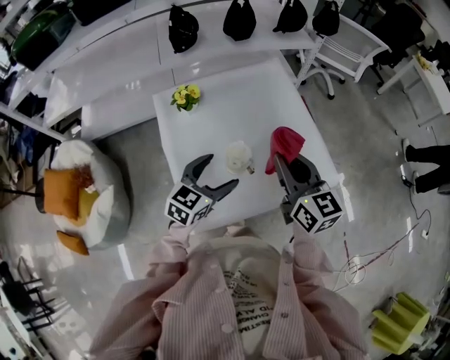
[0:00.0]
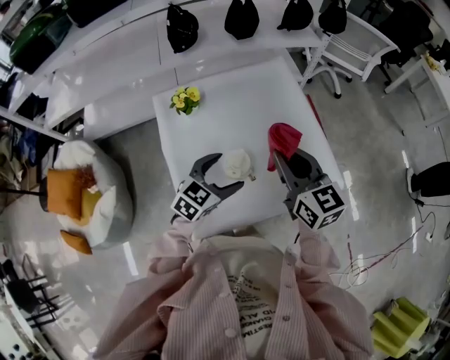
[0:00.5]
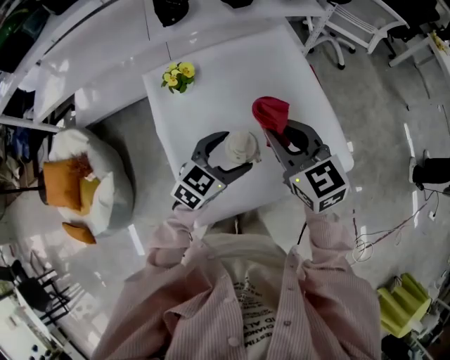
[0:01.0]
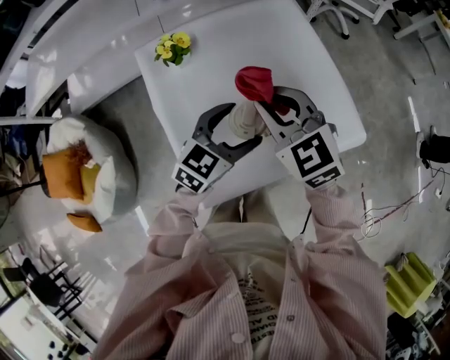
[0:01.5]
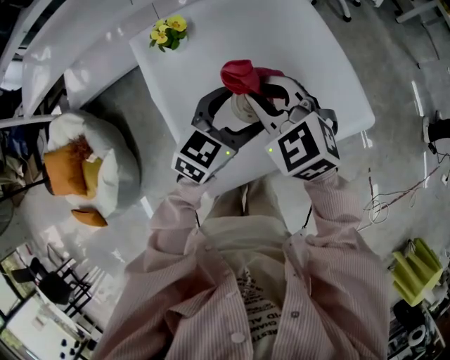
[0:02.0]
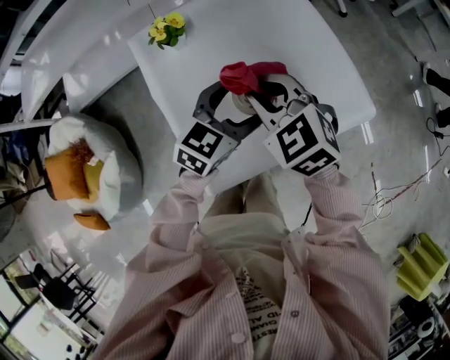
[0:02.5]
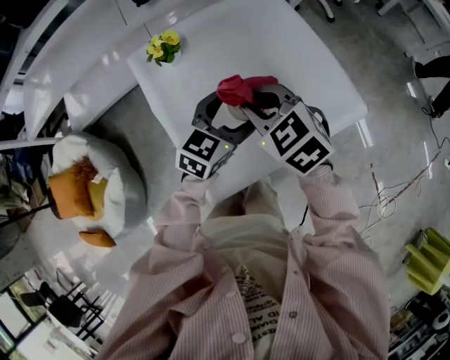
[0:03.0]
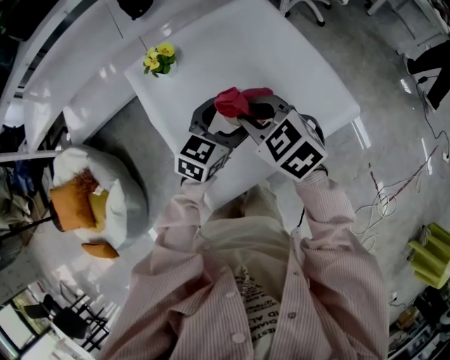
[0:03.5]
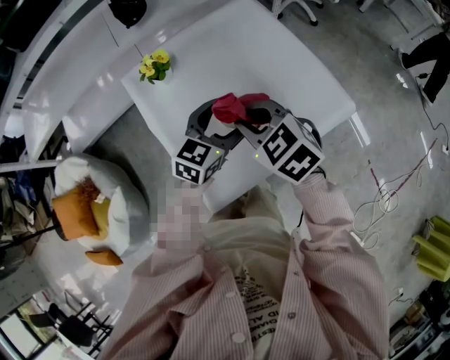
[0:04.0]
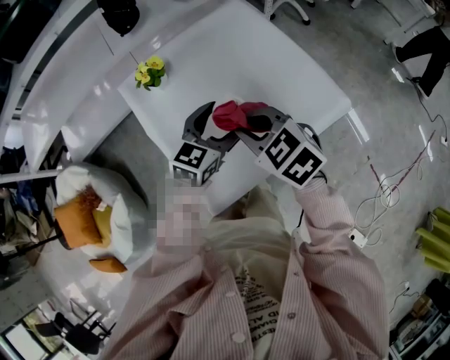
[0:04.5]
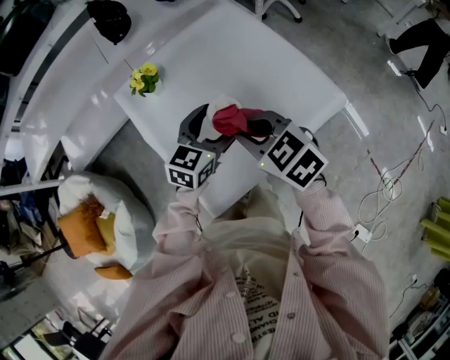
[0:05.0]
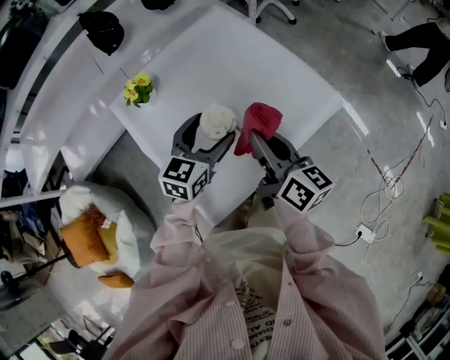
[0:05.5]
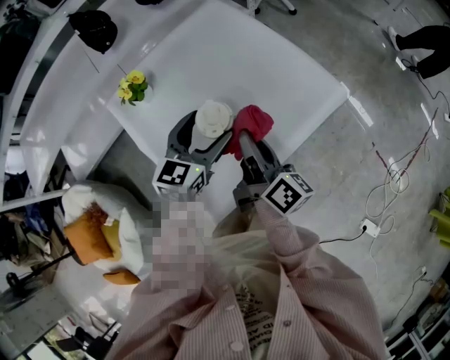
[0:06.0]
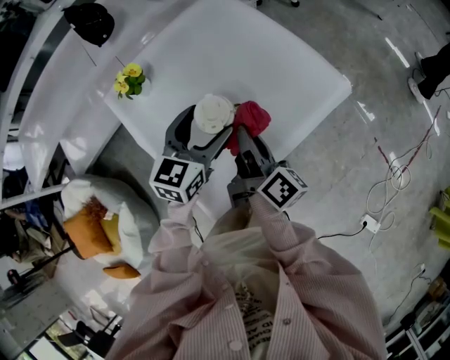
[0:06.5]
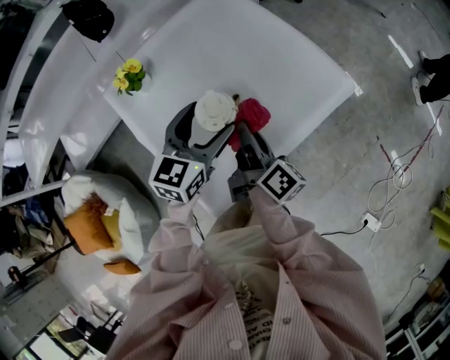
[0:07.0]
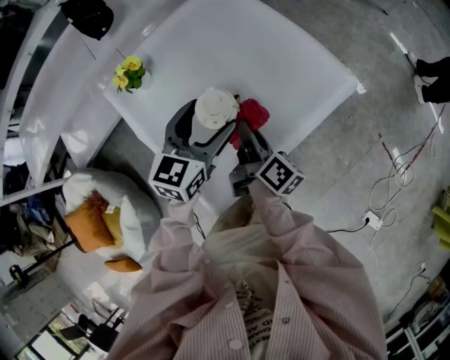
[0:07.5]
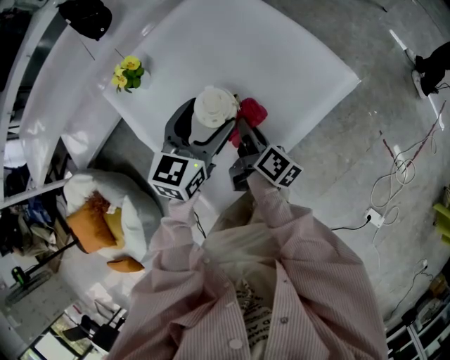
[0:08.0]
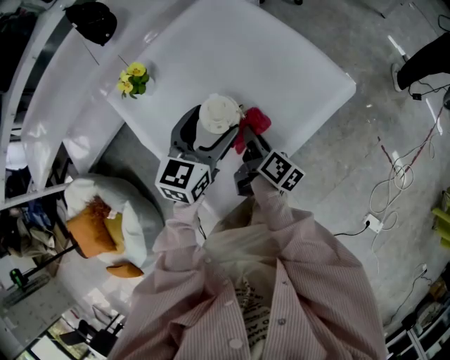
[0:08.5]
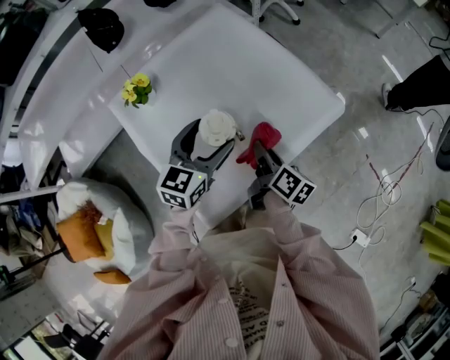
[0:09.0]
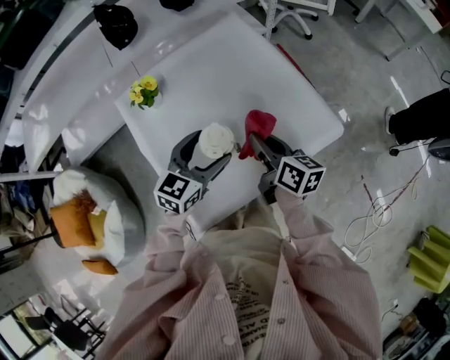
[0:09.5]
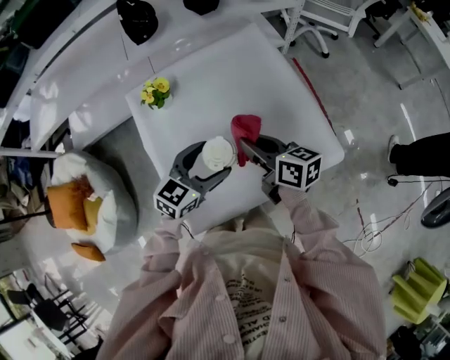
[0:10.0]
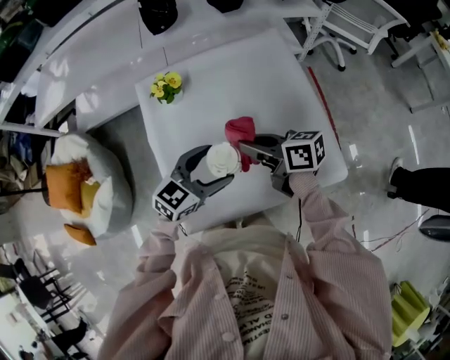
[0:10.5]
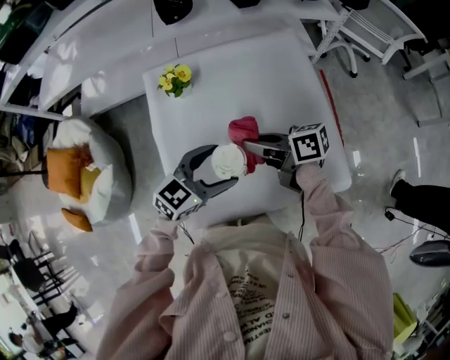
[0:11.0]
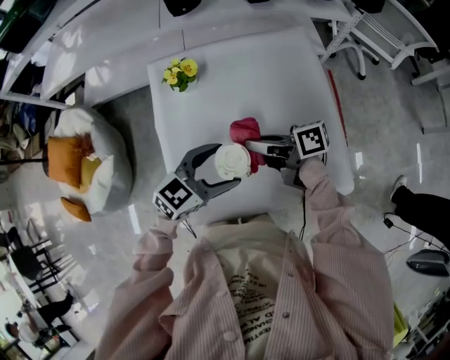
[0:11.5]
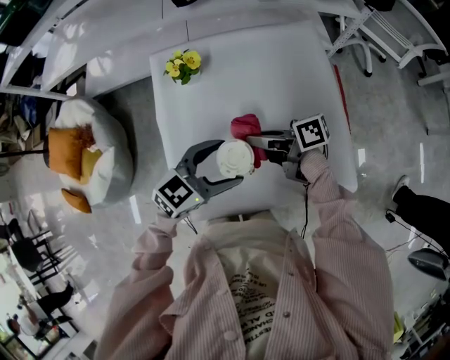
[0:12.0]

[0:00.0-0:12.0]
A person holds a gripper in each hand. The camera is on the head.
0:00.0 to 0:02.0: The left gripper changes place by about 5 cm; the right gripper goes roughly 15 cm to the left and downward, and rotates about 50 degrees.
0:02.0 to 0:04.0: The right gripper ends up about 5 cm from where it was.
0:04.0 to 0:06.0: The right gripper moves to the right, approximately 10 cm, and tilts its fingers some 40 degrees upward.
0:06.0 to 0:08.0: The right gripper heads downward, covering some 10 cm.
0:08.0 to 0:10.0: The right gripper is displaced upward and forward by approximately 15 cm, and rotates roughly 60 degrees.
0:10.0 to 0:12.0: The right gripper changes place by approximately 10 cm, and turns by approximately 50 degrees.

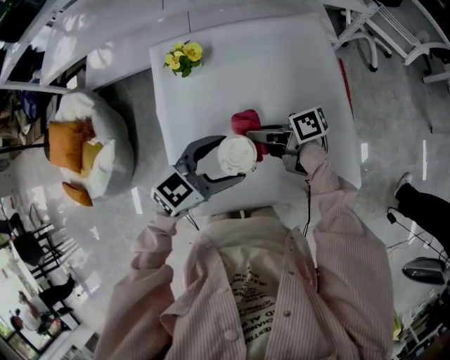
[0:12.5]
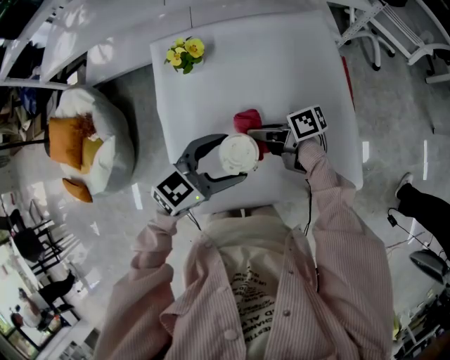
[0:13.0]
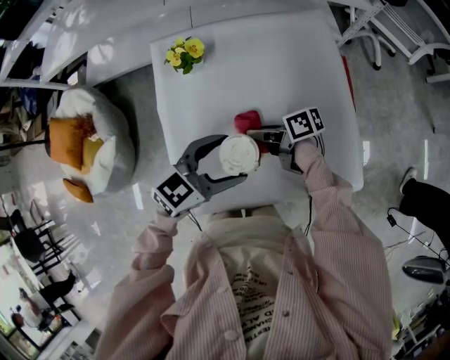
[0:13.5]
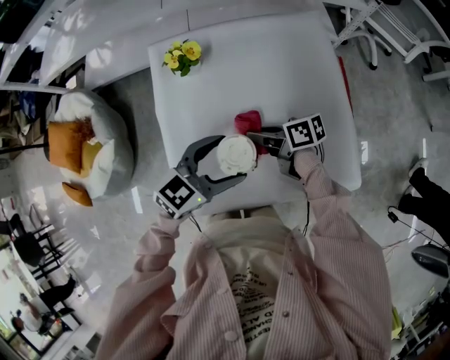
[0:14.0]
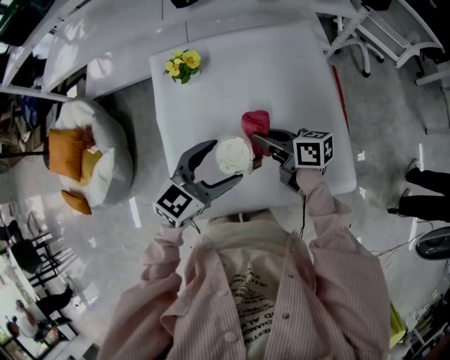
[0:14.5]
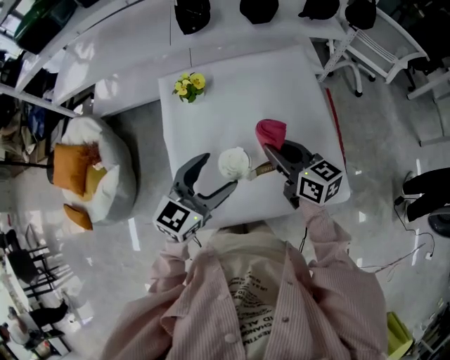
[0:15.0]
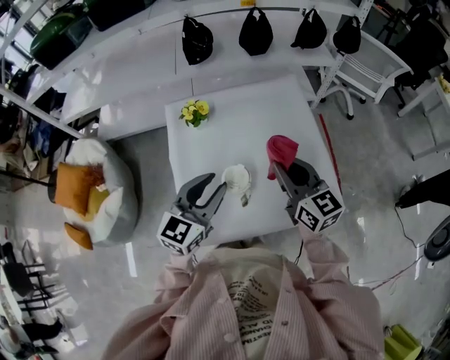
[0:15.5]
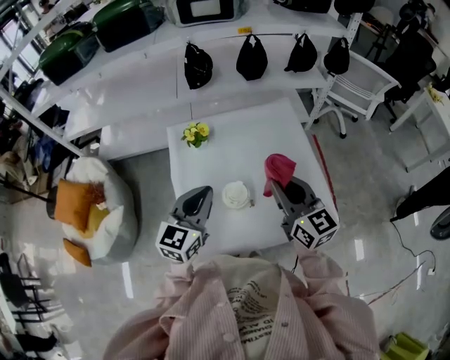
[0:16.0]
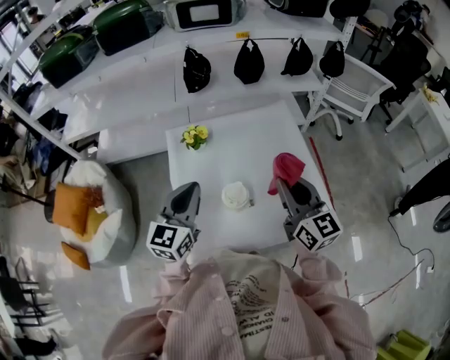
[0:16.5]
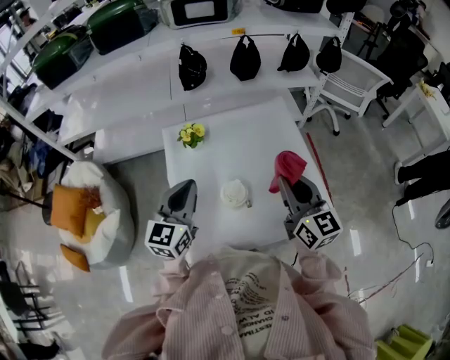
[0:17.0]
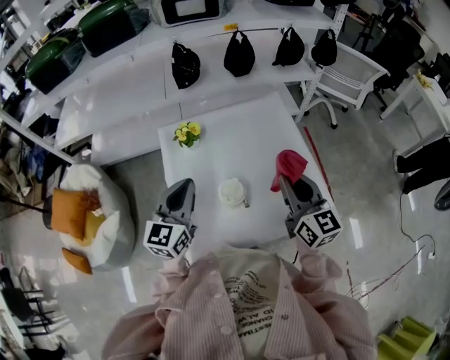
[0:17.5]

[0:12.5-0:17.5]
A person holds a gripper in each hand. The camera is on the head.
0:12.5 to 0:15.0: The right gripper goes some 10 cm upward, and changes its angle by about 50 degrees; the left gripper shifts some 5 cm upward, and rotates roughly 20 degrees.
0:15.0 to 0:17.5: The right gripper travels upward, to the right and backward by about 15 cm, and swivels some 30 degrees; the left gripper goes roughly 10 cm to the left and upward, and closes up.

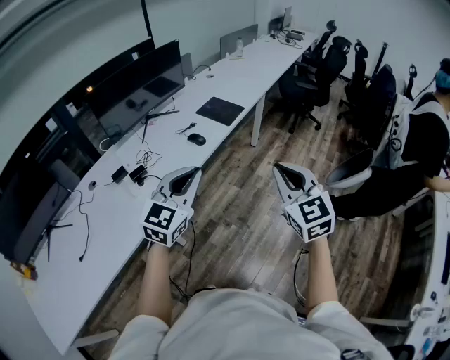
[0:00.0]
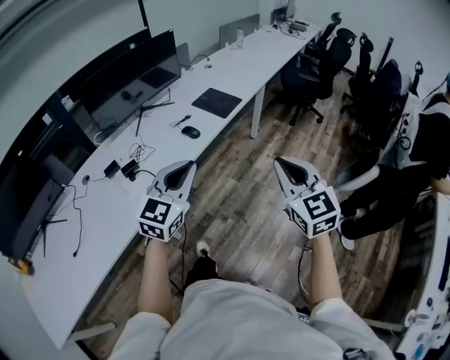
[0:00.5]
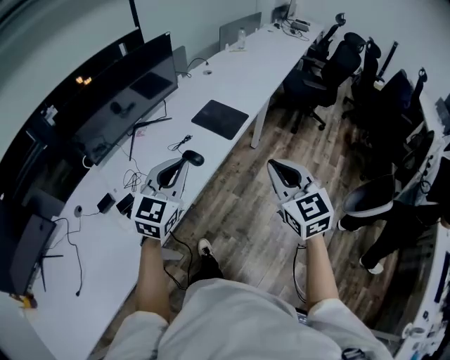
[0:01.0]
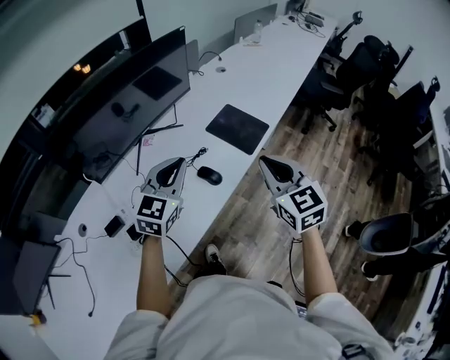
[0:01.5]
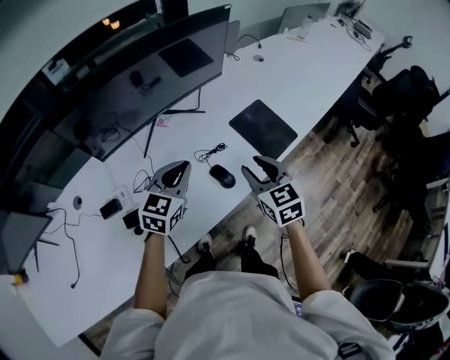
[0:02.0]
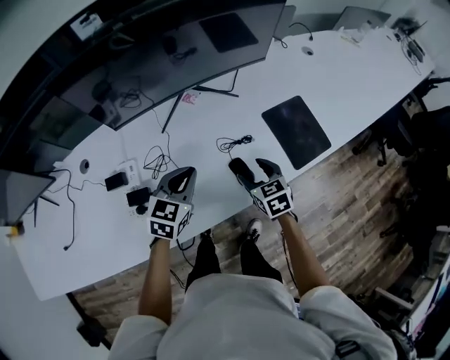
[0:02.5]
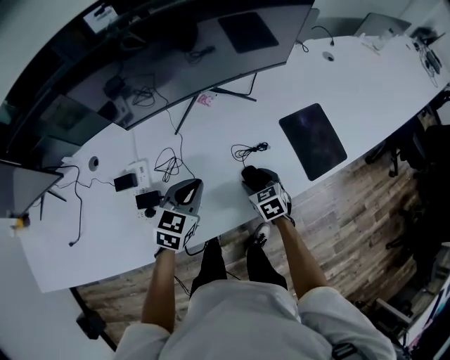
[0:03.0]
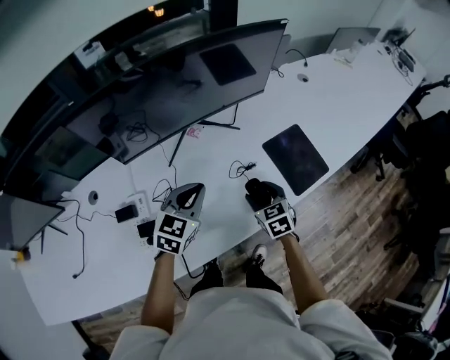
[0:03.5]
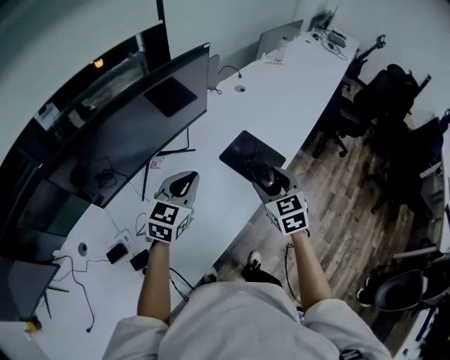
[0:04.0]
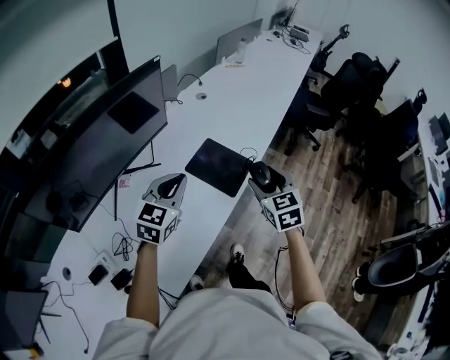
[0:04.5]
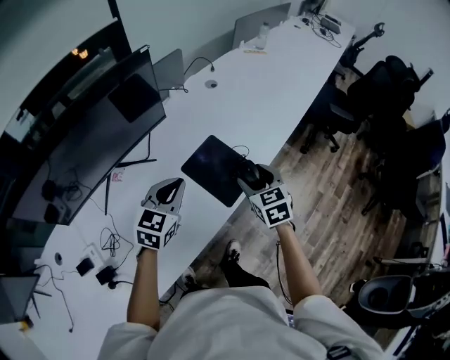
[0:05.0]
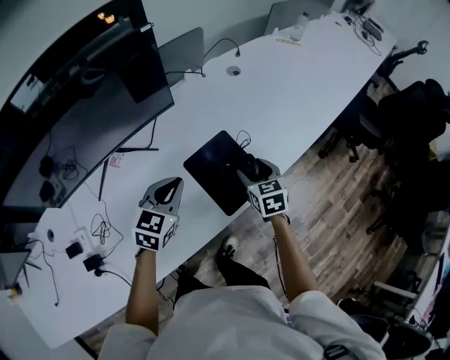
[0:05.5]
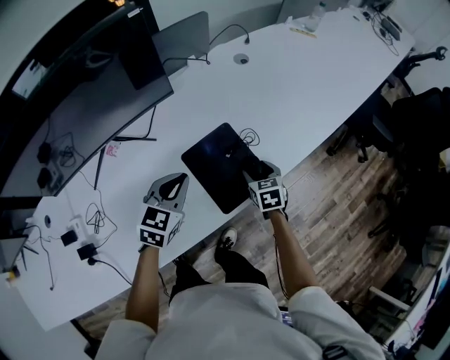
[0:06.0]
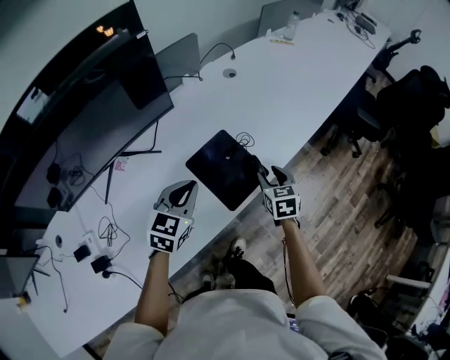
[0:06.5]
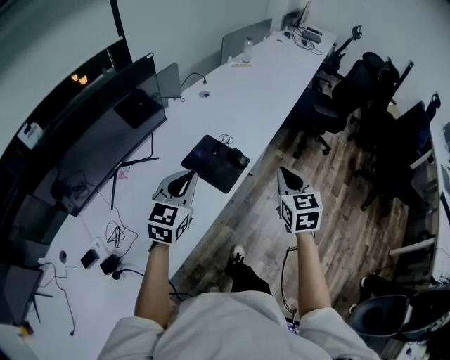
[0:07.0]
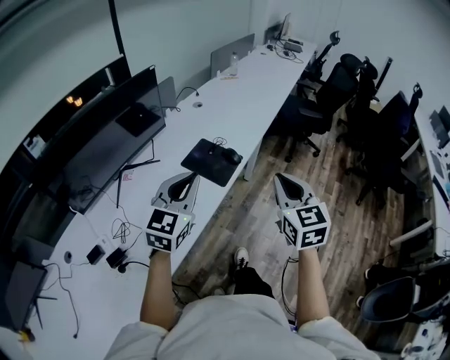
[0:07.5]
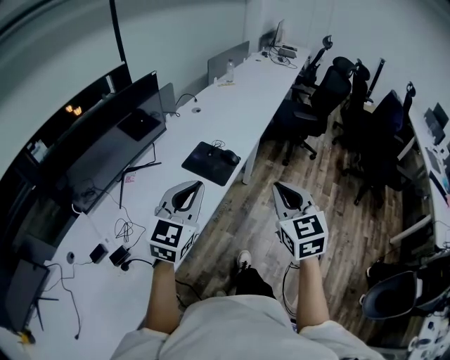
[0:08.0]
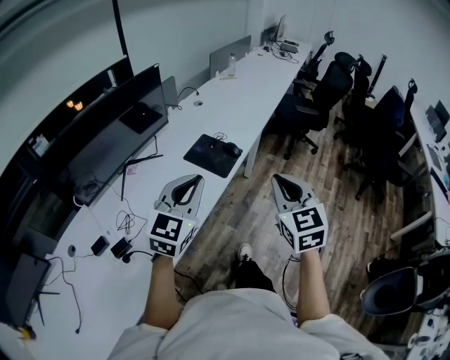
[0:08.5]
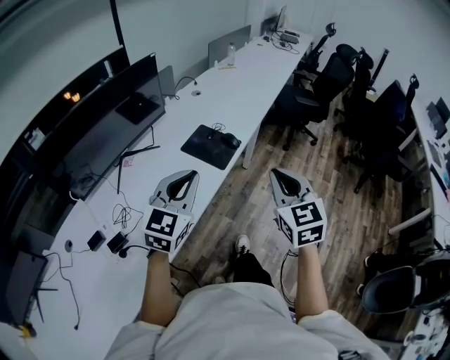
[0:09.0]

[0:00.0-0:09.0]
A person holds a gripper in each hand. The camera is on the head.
0:00.0 to 0:02.0: Both grippers are carried forward, approximately 50 cm. The right gripper swivels about 30 degrees, and opens. The left gripper turns by some 30 degrees.
0:02.0 to 0:04.5: The left gripper shifts by approximately 15 cm. The right gripper reaches about 25 cm downward, then returns, and changes its angle by approximately 30 degrees.
0:04.5 to 0:07.0: Both grippers travel together to the right, roughly 10 cm. The left gripper goes downward and returns, about 15 cm each way. The right gripper goes downward and returns, some 30 cm each way, and closes its fingers.
0:07.0 to 0:09.0: The grippers both shift backward by approximately 20 cm.

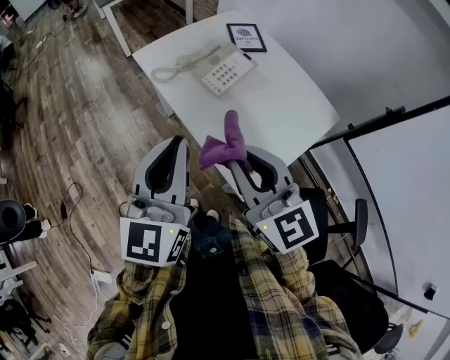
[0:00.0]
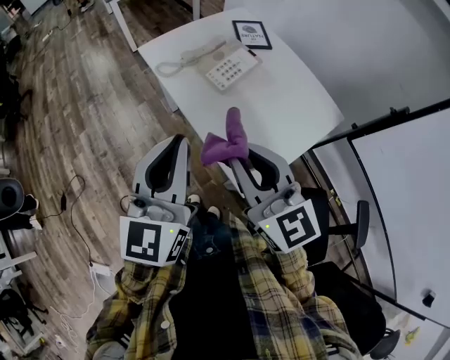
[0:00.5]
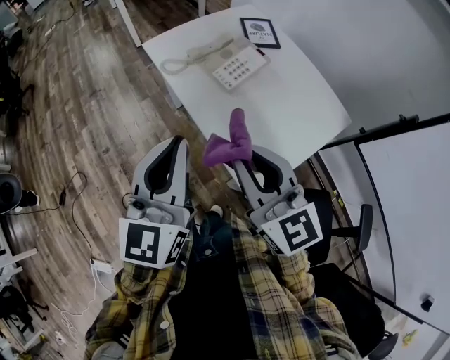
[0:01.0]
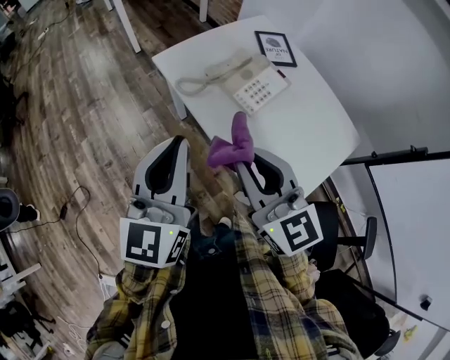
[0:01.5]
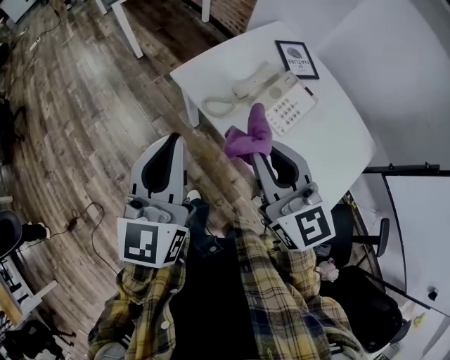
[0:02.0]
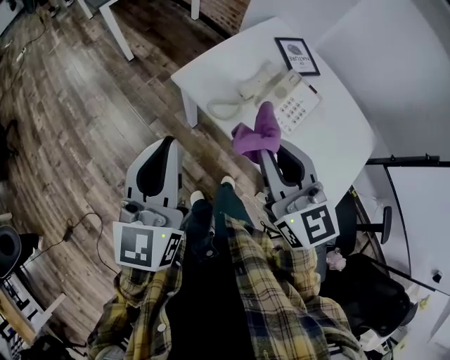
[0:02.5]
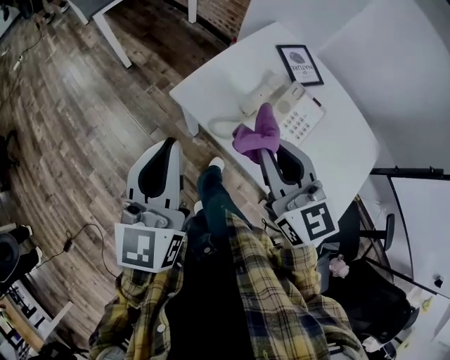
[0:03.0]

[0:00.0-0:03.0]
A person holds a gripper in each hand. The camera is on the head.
0:00.0 to 0:01.5: The two grippers go about 15 cm forward and to the left.
0:01.5 to 0:03.0: Both grippers move forward and to the left, about 25 cm.
